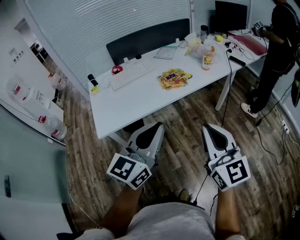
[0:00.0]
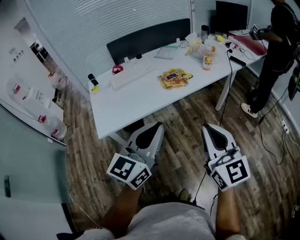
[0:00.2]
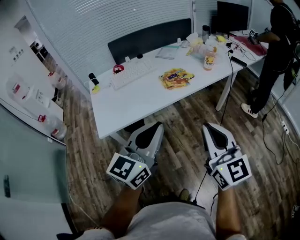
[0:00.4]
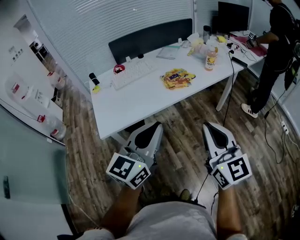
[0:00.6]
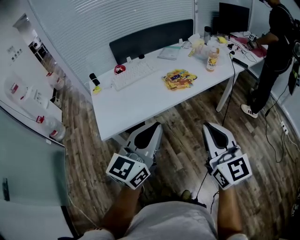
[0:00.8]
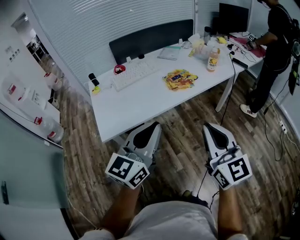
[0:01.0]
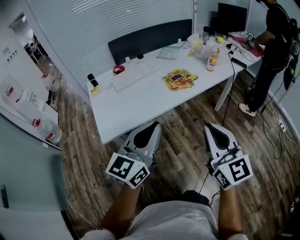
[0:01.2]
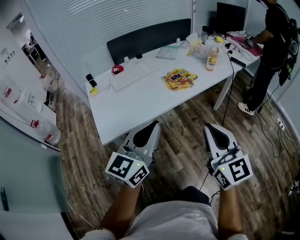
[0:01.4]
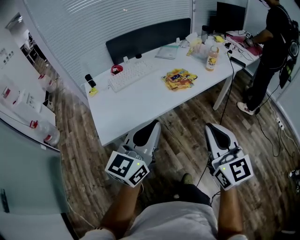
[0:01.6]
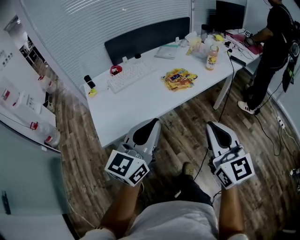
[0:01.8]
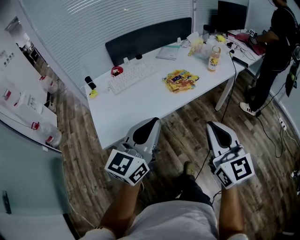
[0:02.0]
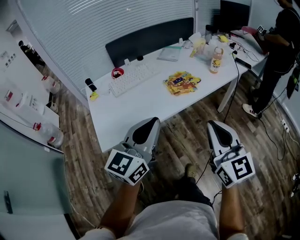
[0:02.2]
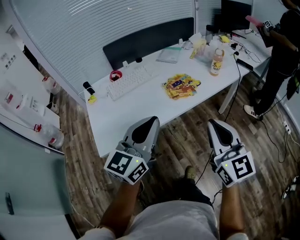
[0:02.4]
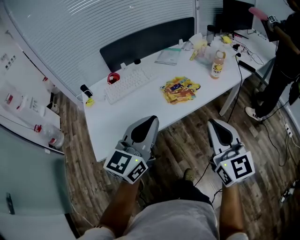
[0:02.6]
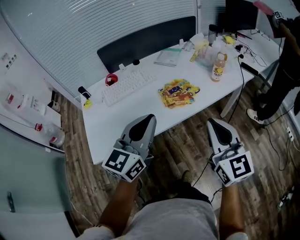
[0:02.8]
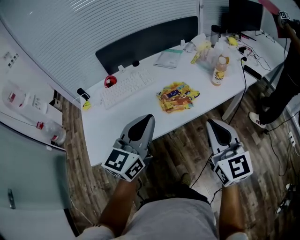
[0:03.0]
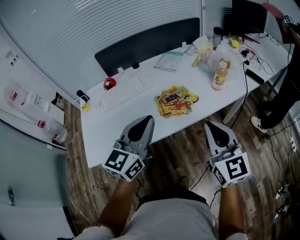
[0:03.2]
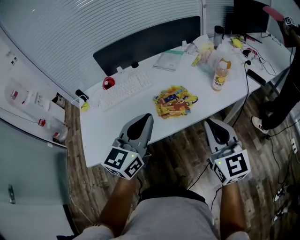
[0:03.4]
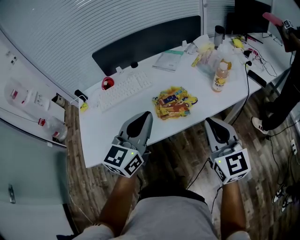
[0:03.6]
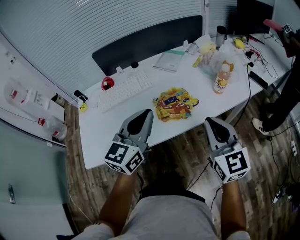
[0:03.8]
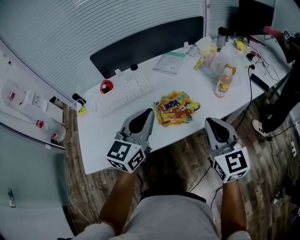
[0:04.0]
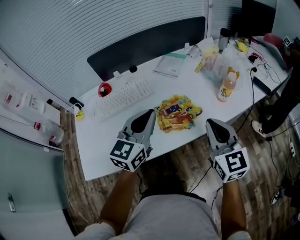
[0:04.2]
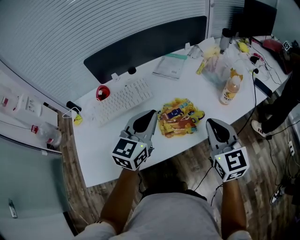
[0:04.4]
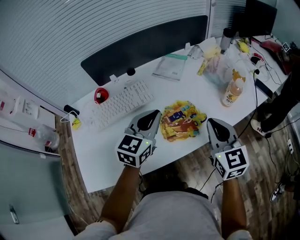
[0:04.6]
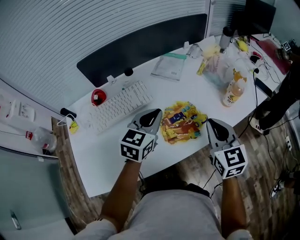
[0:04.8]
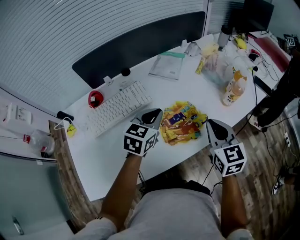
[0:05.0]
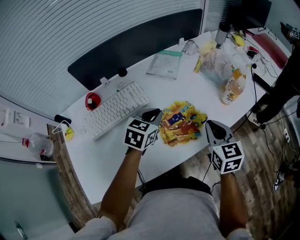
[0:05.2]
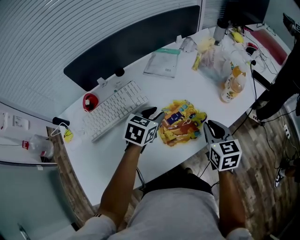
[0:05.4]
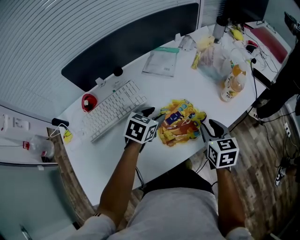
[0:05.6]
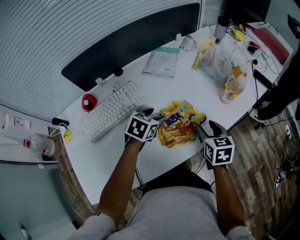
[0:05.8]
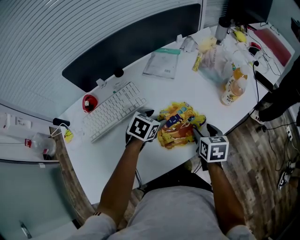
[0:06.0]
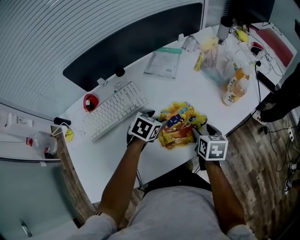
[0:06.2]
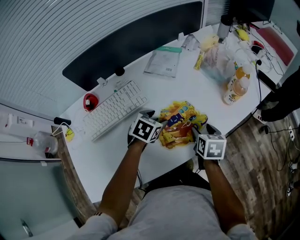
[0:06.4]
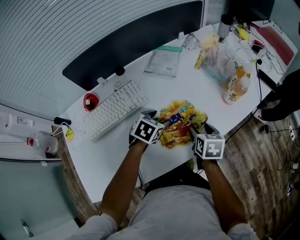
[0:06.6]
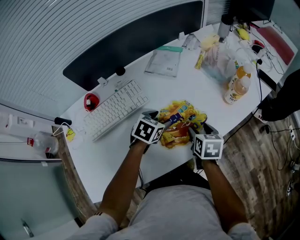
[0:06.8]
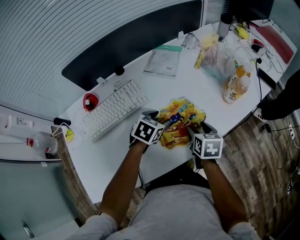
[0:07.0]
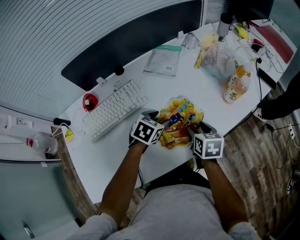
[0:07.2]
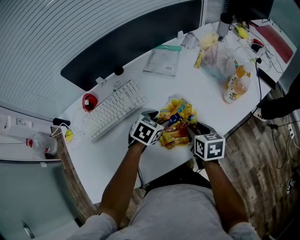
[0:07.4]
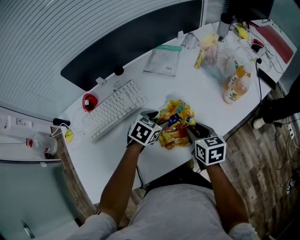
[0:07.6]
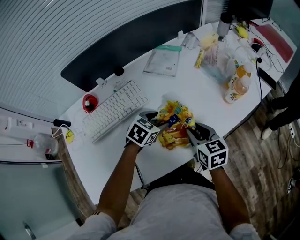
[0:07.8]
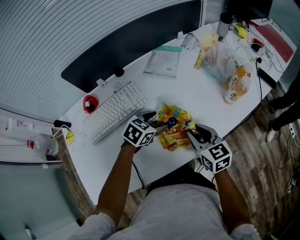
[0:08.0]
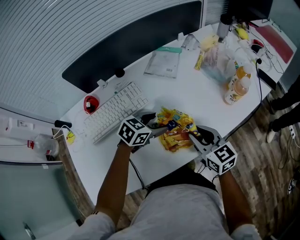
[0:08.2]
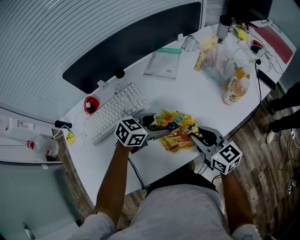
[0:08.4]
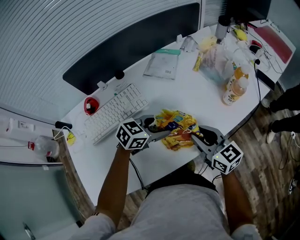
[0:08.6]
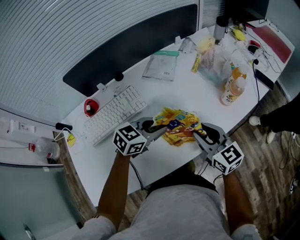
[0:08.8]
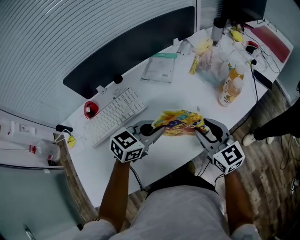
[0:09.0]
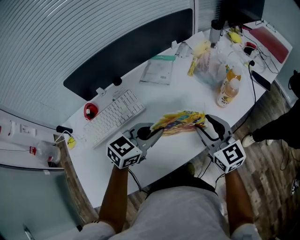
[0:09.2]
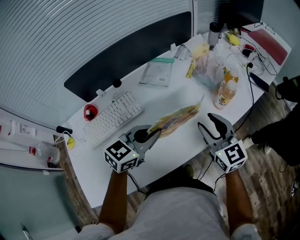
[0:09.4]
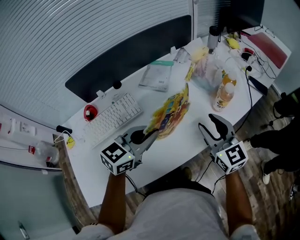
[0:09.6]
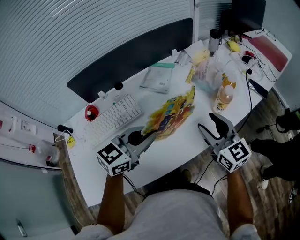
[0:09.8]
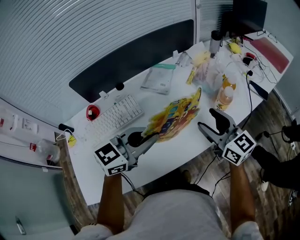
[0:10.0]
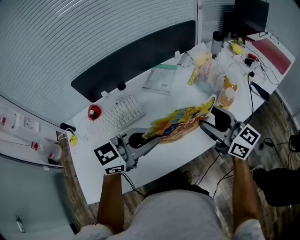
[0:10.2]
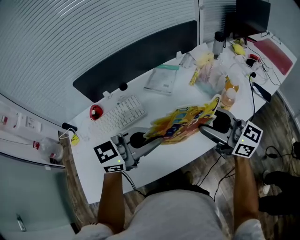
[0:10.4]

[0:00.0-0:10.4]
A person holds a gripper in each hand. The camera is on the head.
0:00.0 to 0:01.4: The grippers both shift to the left by about 10 cm.
0:01.4 to 0:03.0: Both grippers move forward, some 20 cm.
0:03.0 to 0:04.4: The two grippers go about 20 cm forward.
0:04.4 to 0:06.0: The left gripper is displaced downward and forward by some 25 cm, points its fingers approximately 40 degrees further downward, and opens its fingers. Meanwhile the right gripper goes some 20 cm downward, points its fingers some 30 degrees further downward, and opens its fingers.
0:06.0 to 0:07.4: There are only small adjustments of the grippers.
0:07.4 to 0:09.0: The two grippers go approximately 10 cm upward. The right gripper turns by some 40 degrees. The left gripper turns by roughly 30 degrees, and closes up.
0:09.0 to 0:10.4: Both grippers move upward, roughly 10 cm. The right gripper turns by some 30 degrees, and opens its fingers.

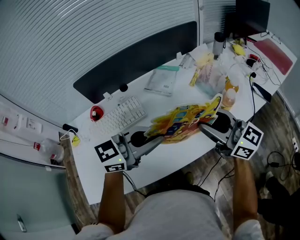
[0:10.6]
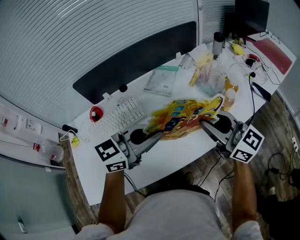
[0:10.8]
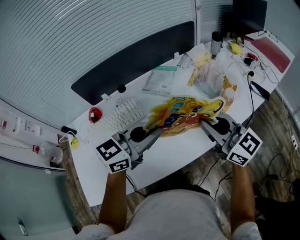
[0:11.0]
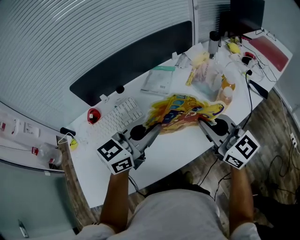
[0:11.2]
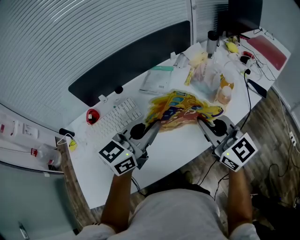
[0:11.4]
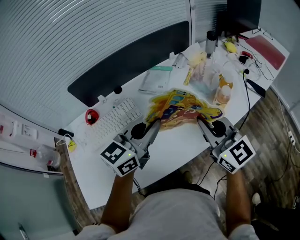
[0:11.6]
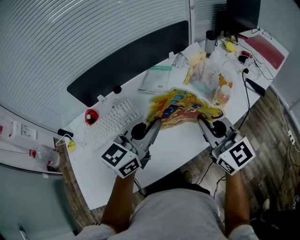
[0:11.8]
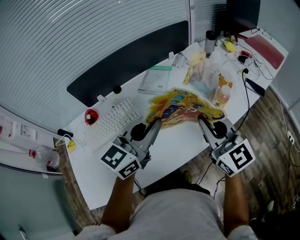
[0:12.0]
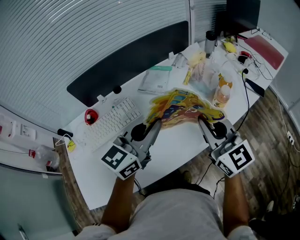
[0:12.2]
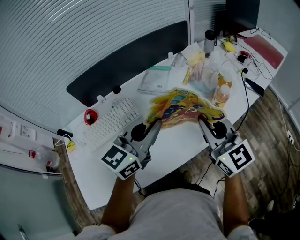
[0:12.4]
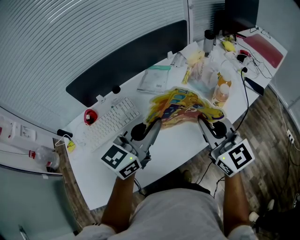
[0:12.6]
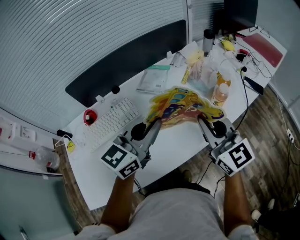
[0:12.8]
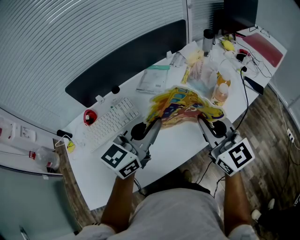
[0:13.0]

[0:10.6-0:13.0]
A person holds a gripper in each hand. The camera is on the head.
0:10.6 to 0:11.8: The left gripper swivels approximately 20 degrees. The right gripper turns by about 30 degrees, and closes.
0:11.8 to 0:13.0: Both grippers stay about where they are.

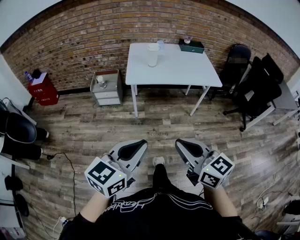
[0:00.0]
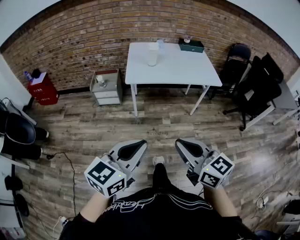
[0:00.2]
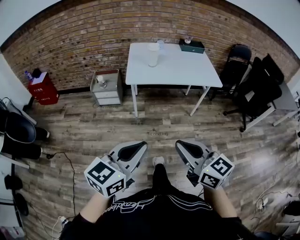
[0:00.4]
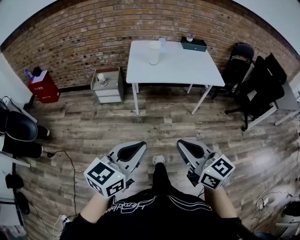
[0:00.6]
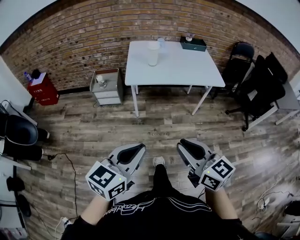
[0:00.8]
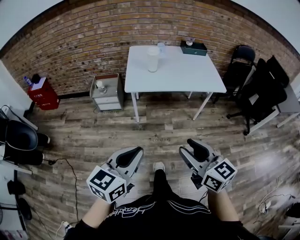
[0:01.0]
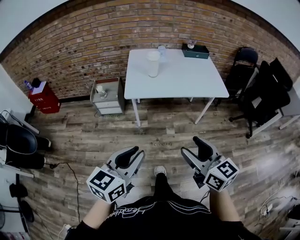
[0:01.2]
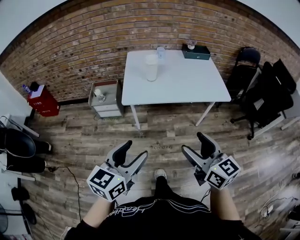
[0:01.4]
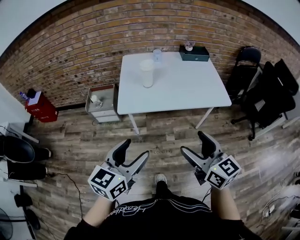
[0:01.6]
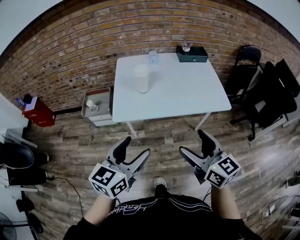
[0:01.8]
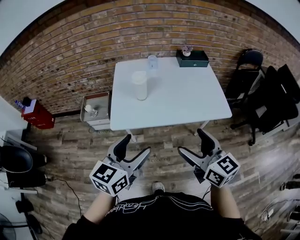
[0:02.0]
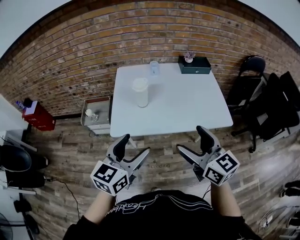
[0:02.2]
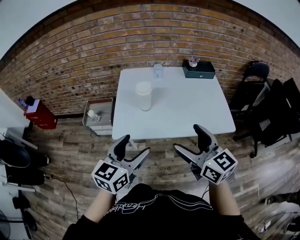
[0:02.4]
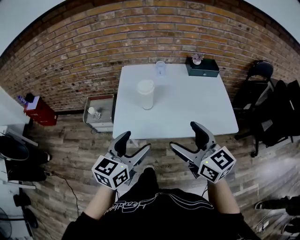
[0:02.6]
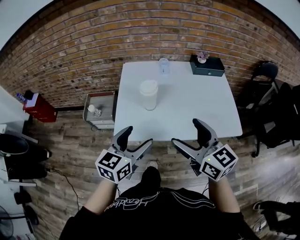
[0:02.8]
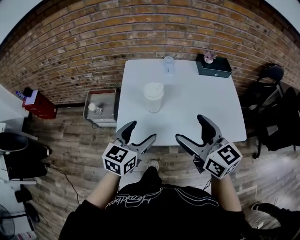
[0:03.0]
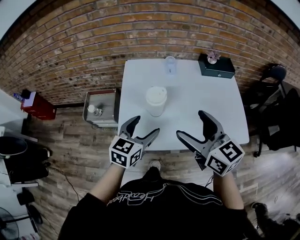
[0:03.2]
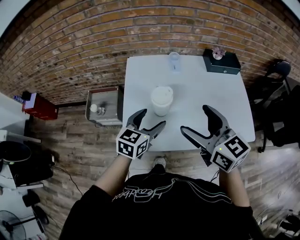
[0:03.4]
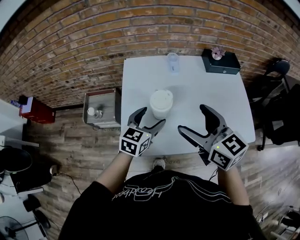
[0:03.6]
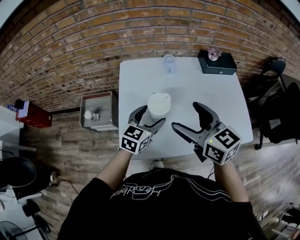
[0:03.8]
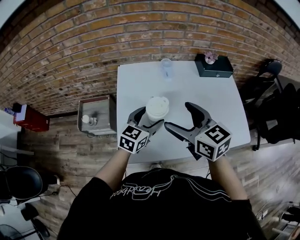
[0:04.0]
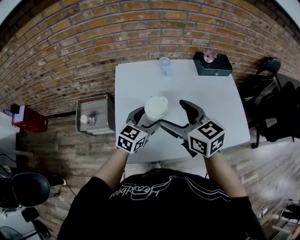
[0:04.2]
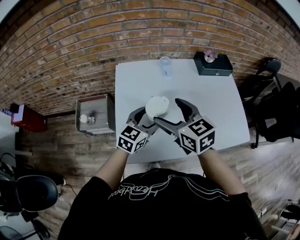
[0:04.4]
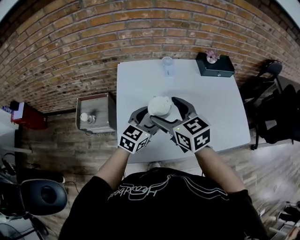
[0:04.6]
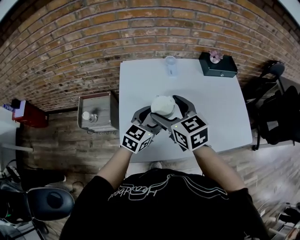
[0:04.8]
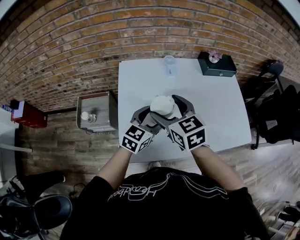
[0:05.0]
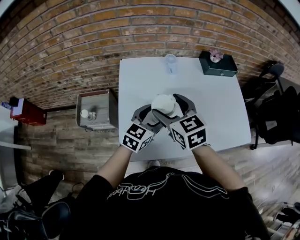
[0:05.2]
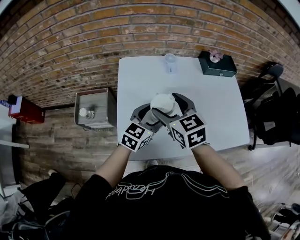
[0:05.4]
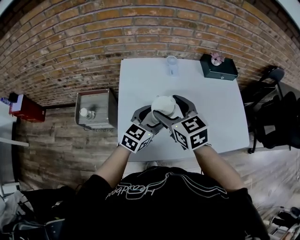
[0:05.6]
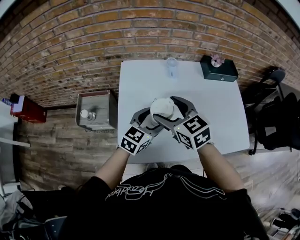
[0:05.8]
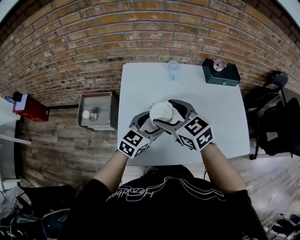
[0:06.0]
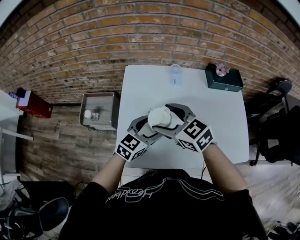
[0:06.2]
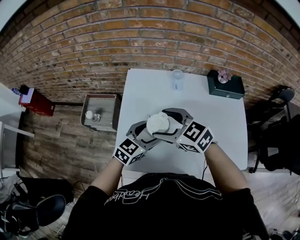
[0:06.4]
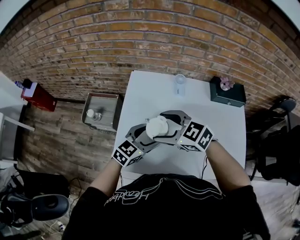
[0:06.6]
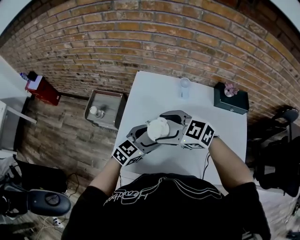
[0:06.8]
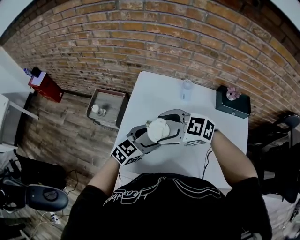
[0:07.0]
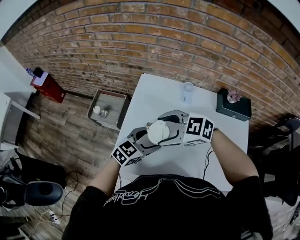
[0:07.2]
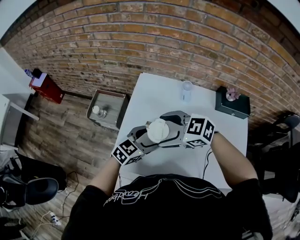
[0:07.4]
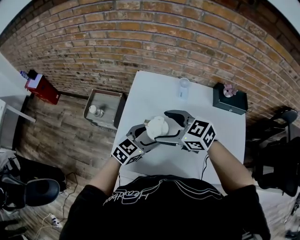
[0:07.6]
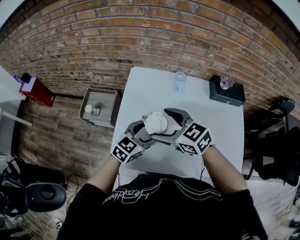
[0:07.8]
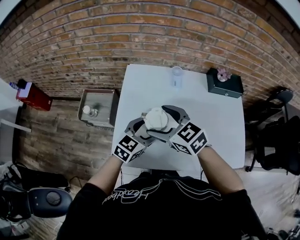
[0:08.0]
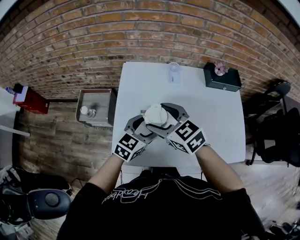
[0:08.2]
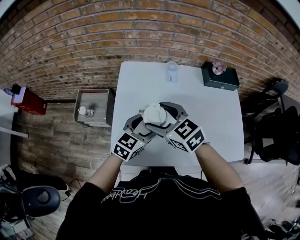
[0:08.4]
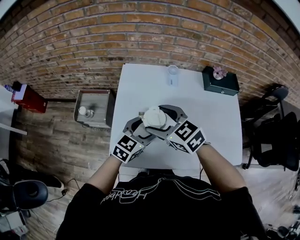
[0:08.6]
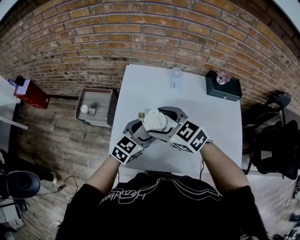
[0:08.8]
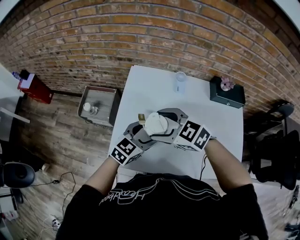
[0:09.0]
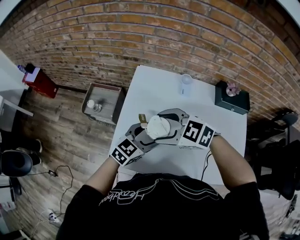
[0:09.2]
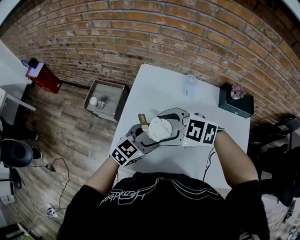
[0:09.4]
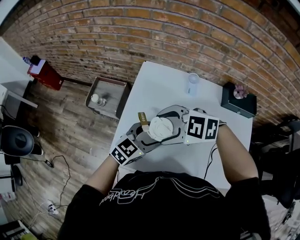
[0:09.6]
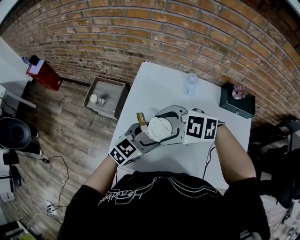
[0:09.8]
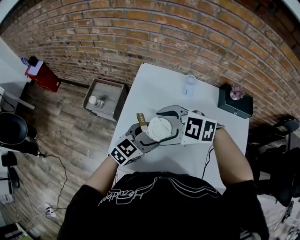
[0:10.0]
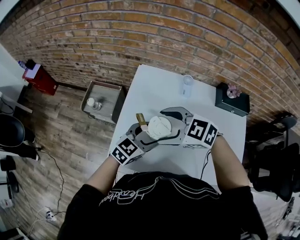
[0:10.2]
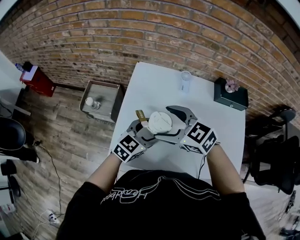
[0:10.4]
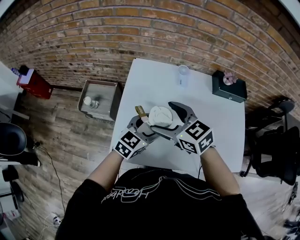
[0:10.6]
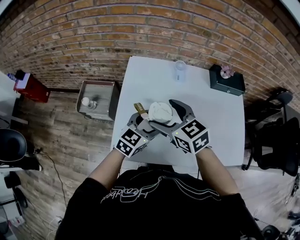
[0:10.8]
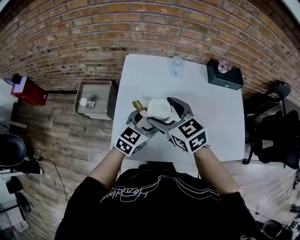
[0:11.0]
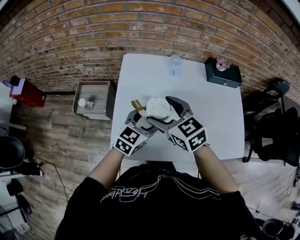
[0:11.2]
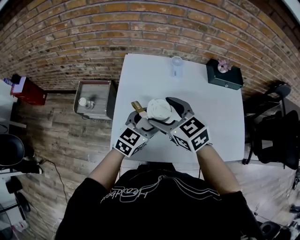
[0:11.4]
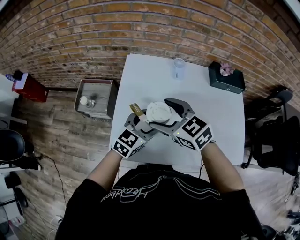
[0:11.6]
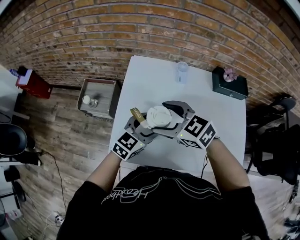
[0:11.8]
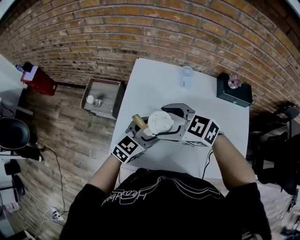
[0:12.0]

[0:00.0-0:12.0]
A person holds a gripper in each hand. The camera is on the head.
0:00.0 to 0:01.6: Both grippers move forward, roughly 25 cm. The left gripper opens its fingers. Meanwhile the right gripper opens its fingers.
0:01.6 to 0:03.0: The two grippers go roughly 30 cm forward.
0:03.0 to 0:04.4: The right gripper shifts approximately 20 cm forward, to the left and downward; the left gripper shifts roughly 20 cm forward and downward.
0:04.4 to 0:06.0: The grippers make only small movements.
0:06.0 to 0:07.6: The right gripper rotates some 30 degrees.
